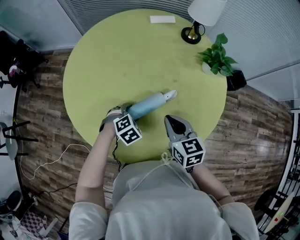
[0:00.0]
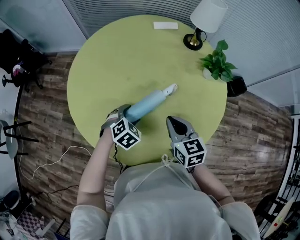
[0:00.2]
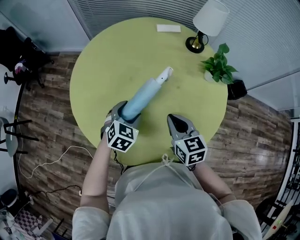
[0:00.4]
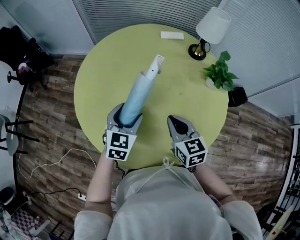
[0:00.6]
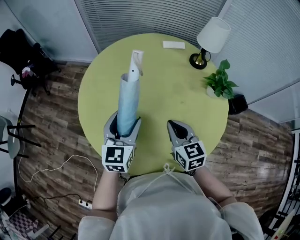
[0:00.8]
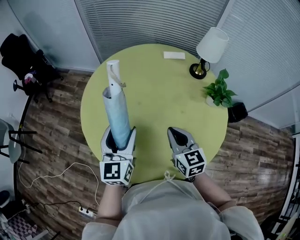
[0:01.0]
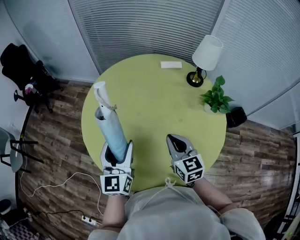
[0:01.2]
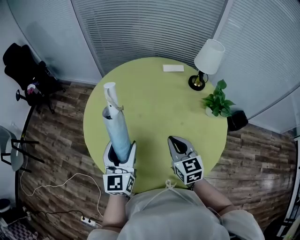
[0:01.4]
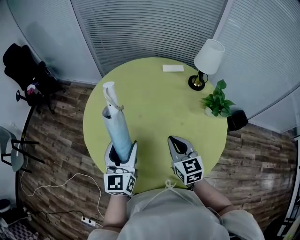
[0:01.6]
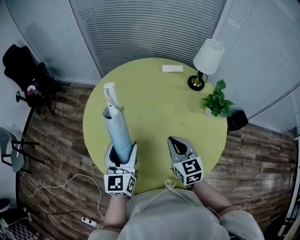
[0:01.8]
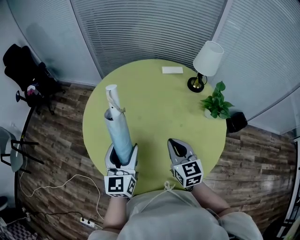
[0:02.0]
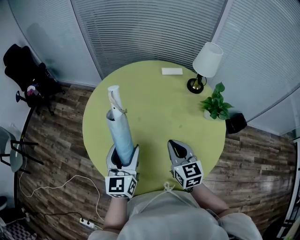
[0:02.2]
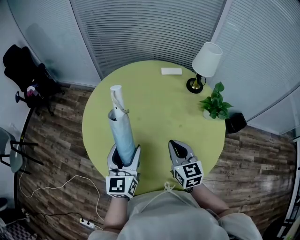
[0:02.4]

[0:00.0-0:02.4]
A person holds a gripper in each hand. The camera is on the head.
0:00.0 to 0:01.2: The right gripper heads upward, covering some 10 cm; the left gripper goes some 25 cm upward, and tips its fingers upward by approximately 70 degrees.
0:01.2 to 0:02.4: The grippers make only small movements.

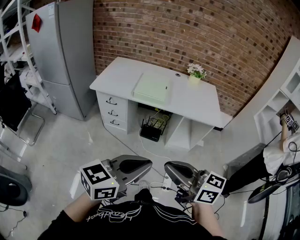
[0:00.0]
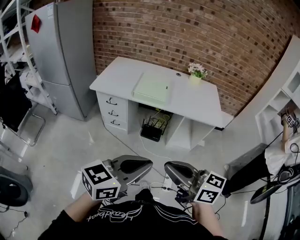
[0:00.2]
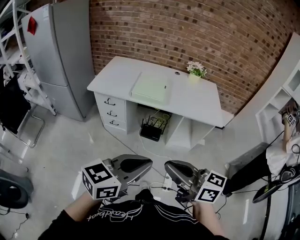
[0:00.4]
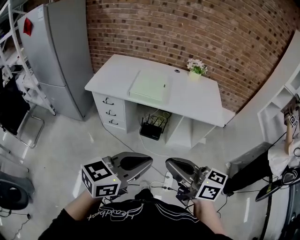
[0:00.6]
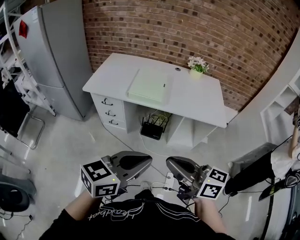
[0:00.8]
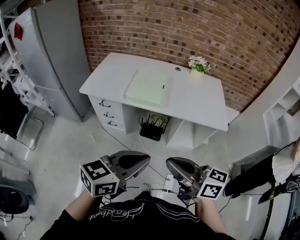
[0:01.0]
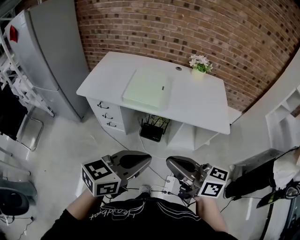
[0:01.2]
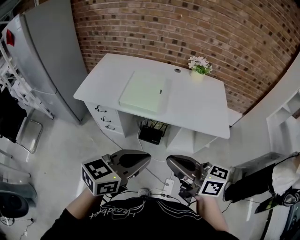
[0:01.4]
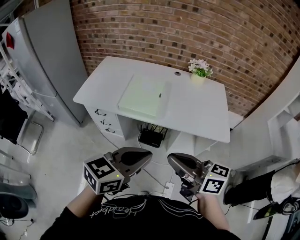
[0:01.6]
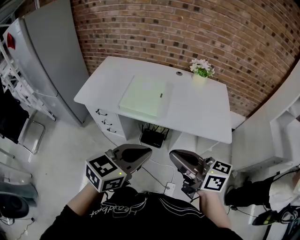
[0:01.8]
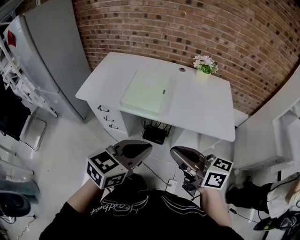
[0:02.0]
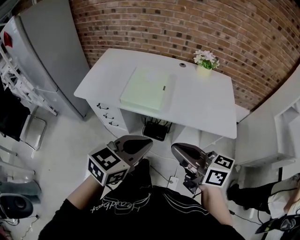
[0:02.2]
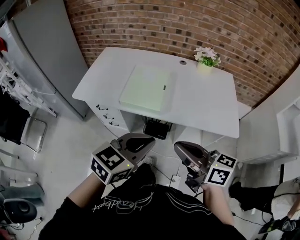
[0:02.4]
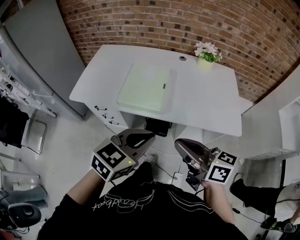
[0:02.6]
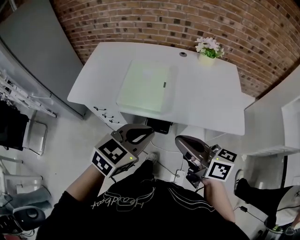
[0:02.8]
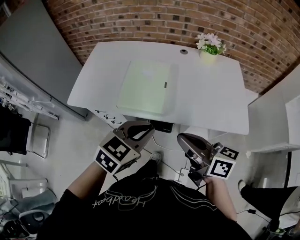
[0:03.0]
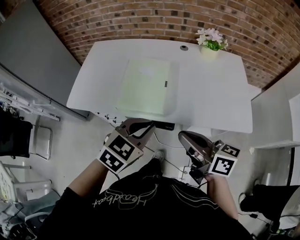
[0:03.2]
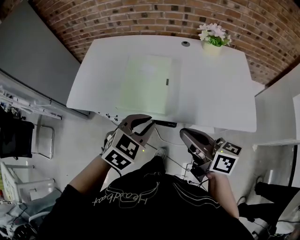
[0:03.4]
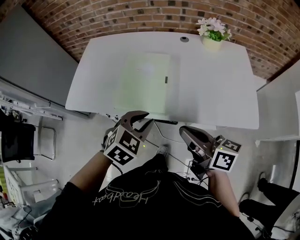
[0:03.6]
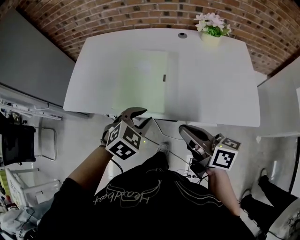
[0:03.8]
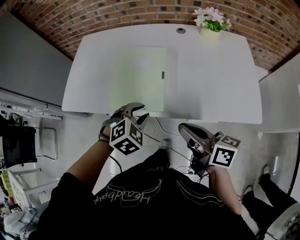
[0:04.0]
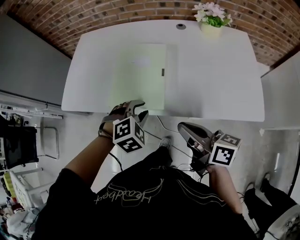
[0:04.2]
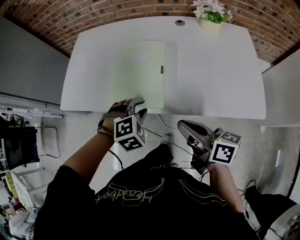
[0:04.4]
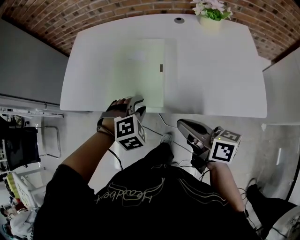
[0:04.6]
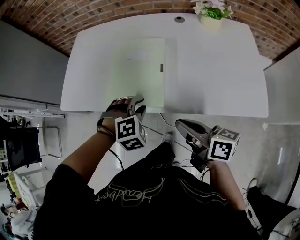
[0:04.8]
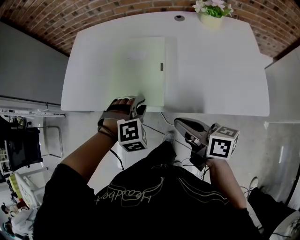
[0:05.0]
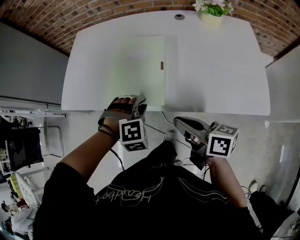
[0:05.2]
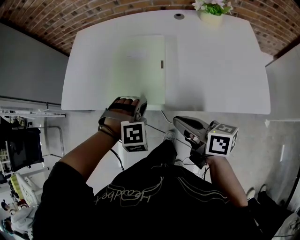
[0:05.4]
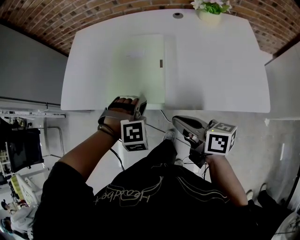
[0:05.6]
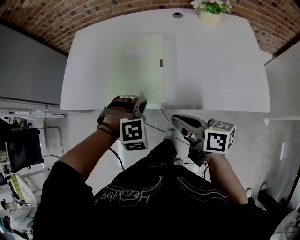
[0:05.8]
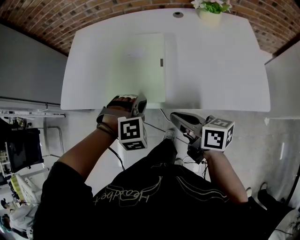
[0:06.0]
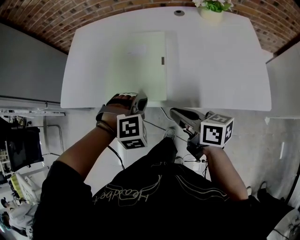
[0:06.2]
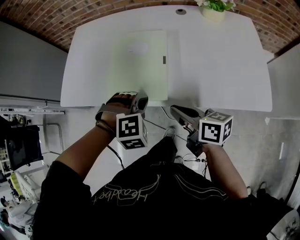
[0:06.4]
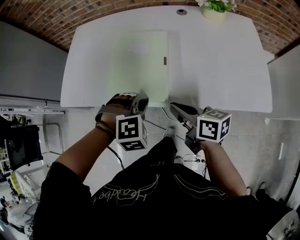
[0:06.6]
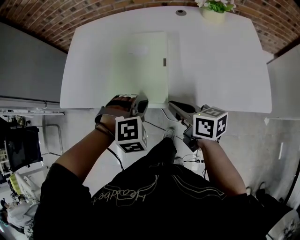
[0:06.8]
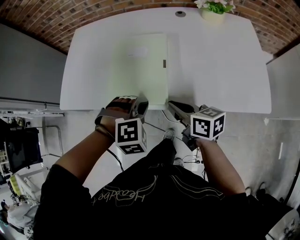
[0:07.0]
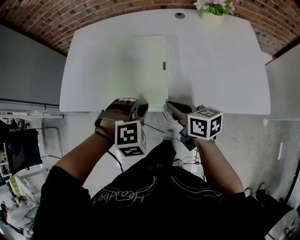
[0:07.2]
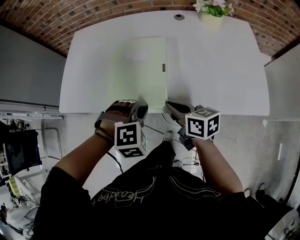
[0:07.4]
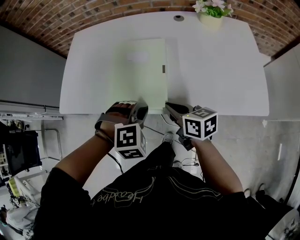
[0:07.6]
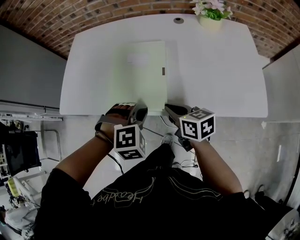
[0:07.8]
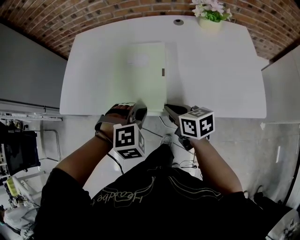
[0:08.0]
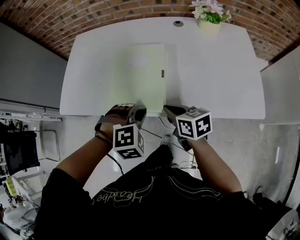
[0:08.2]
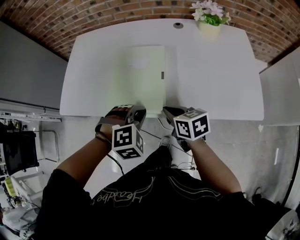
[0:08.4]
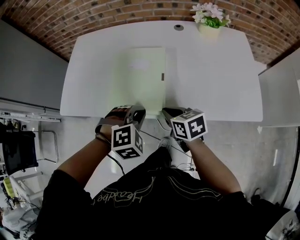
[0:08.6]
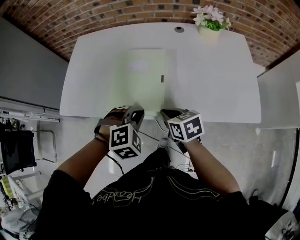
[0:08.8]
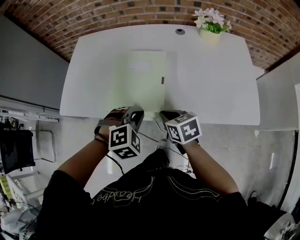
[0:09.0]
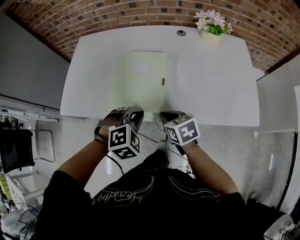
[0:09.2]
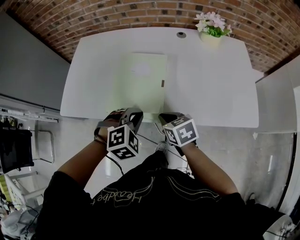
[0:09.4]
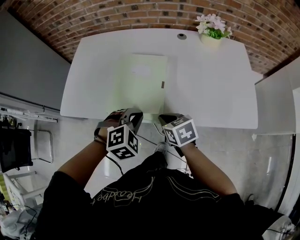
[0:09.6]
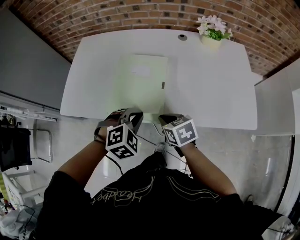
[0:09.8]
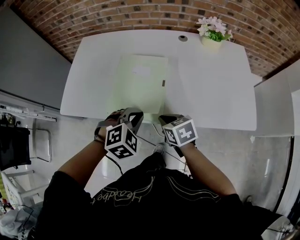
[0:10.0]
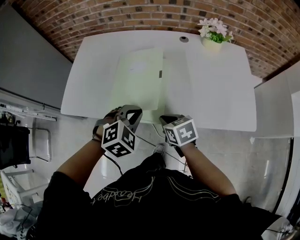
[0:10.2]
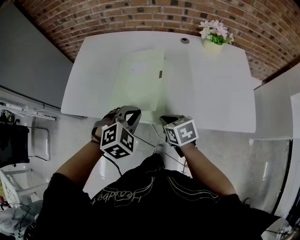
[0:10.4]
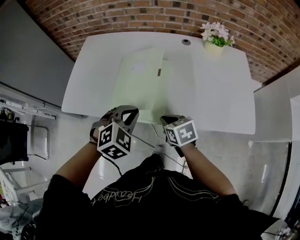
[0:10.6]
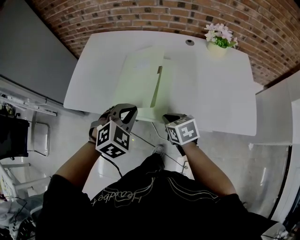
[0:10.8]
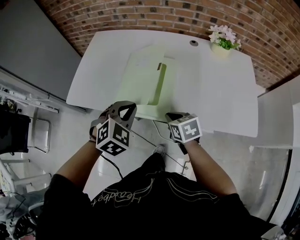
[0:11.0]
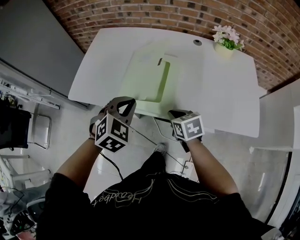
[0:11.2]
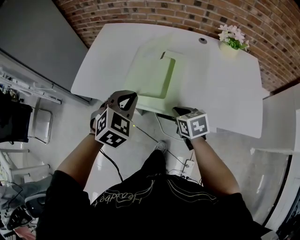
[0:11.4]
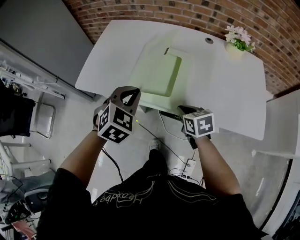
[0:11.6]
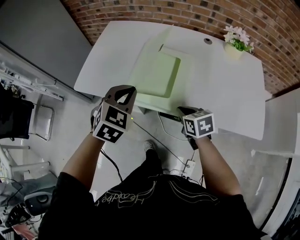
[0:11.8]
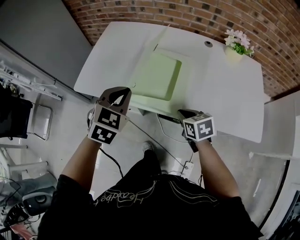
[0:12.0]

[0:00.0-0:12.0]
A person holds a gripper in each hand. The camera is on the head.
0:00.0 to 0:01.6: Both grippers travel together forward, approximately 25 cm.
0:01.6 to 0:03.0: Both grippers move forward and downward, roughly 15 cm. The left gripper changes its angle by about 20 degrees.
0:03.0 to 0:04.4: The left gripper is displaced downward and forward by about 20 cm, swivels about 50 degrees, and opens. The right gripper goes some 10 cm downward and forward.
0:04.4 to 0:06.0: The right gripper changes place by some 5 cm.
0:06.0 to 0:07.6: The right gripper heads forward, covering roughly 5 cm.
0:07.6 to 0:09.0: The right gripper rotates roughly 20 degrees.
0:09.0 to 0:10.4: The grippers make only small movements.
0:10.4 to 0:12.0: The left gripper is displaced to the left and upward by roughly 15 cm, and changes its angle by roughly 30 degrees.

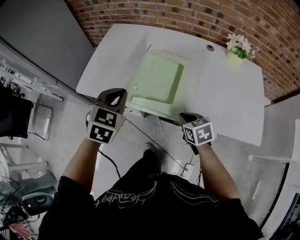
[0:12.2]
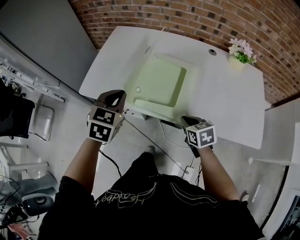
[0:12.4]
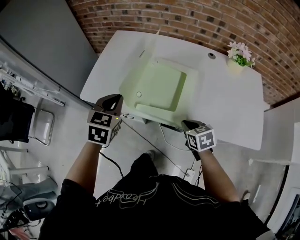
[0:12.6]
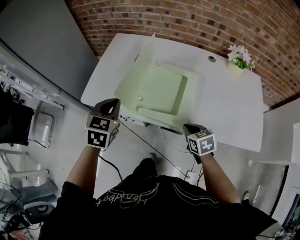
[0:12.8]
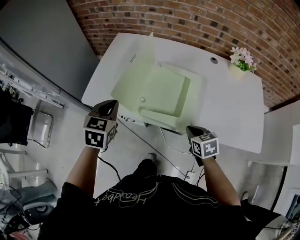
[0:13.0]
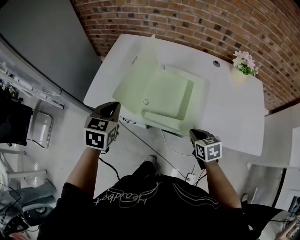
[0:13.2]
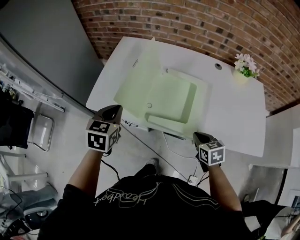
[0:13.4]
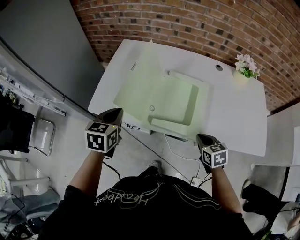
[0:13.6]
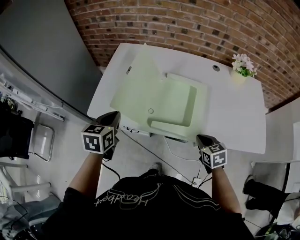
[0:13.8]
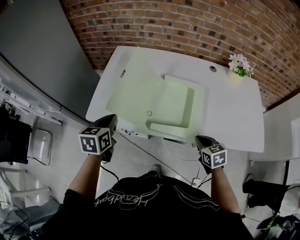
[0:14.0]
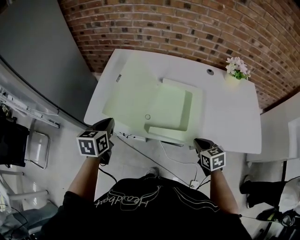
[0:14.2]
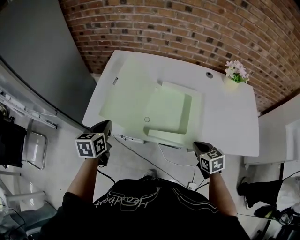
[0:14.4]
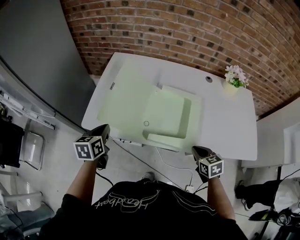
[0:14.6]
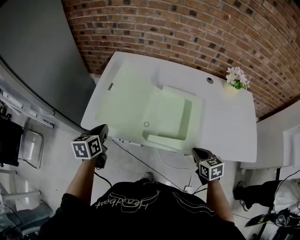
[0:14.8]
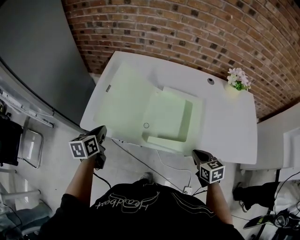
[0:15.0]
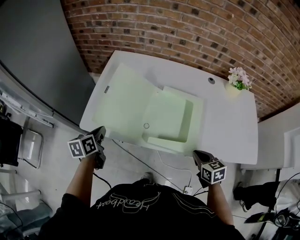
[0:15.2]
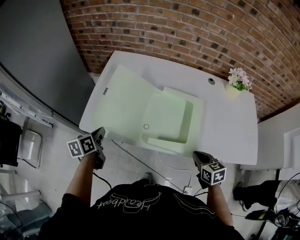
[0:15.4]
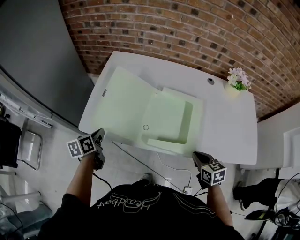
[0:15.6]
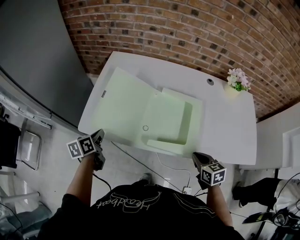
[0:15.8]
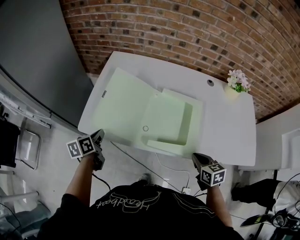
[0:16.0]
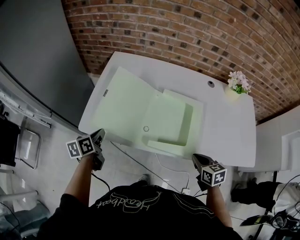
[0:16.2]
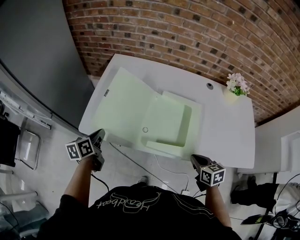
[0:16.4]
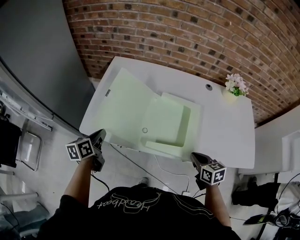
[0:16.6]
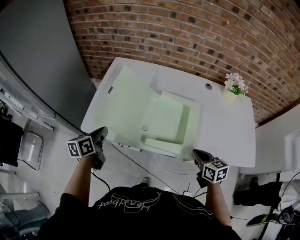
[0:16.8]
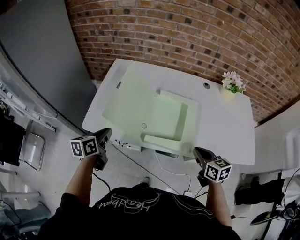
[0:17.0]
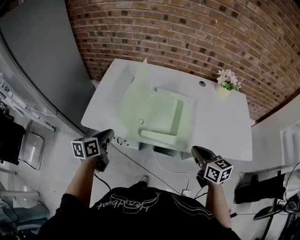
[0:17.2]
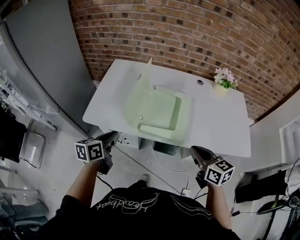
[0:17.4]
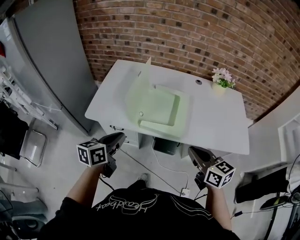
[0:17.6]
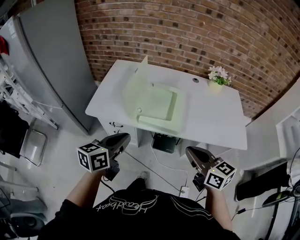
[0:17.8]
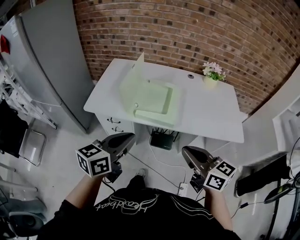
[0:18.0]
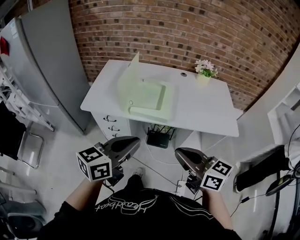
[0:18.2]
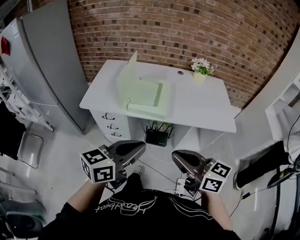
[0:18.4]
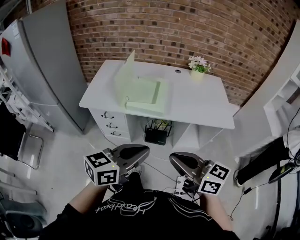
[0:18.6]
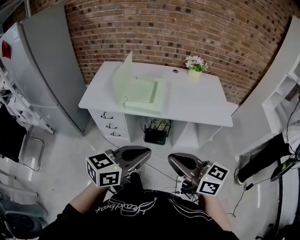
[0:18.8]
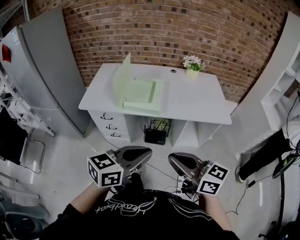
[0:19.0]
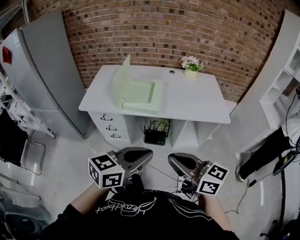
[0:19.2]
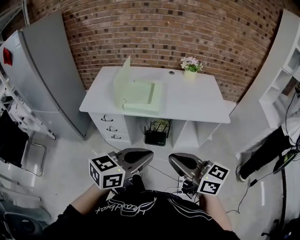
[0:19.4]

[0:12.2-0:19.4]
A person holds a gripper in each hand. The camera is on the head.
0:12.2 to 0:13.6: The left gripper moves to the left and forward, roughly 15 cm, and turns by some 20 degrees.
0:13.6 to 0:15.0: The left gripper shifts approximately 10 cm to the left and downward, and turns by approximately 20 degrees.
0:15.0 to 0:16.6: The grippers move only a little.
0:16.6 to 0:18.0: The left gripper is displaced backward, to the right and upward by approximately 40 cm, and turns by approximately 40 degrees, while the right gripper is displaced backward and upward by roughly 30 cm, and points its fingers roughly 30 degrees further upward.
0:18.0 to 0:19.4: The left gripper travels backward and to the right by about 25 cm, and changes its angle by some 20 degrees. Meanwhile the right gripper is displaced backward by approximately 15 cm.

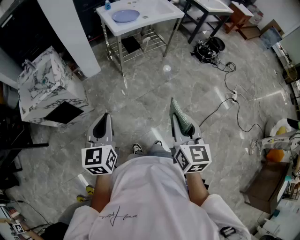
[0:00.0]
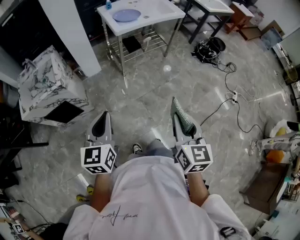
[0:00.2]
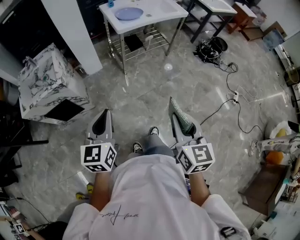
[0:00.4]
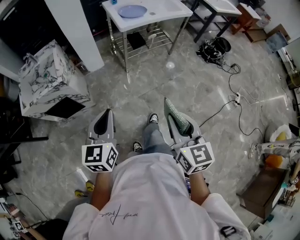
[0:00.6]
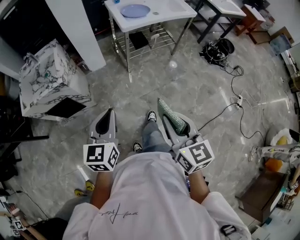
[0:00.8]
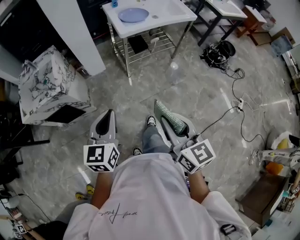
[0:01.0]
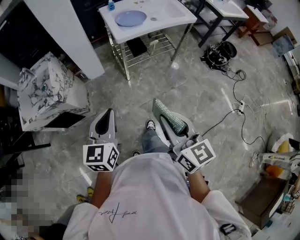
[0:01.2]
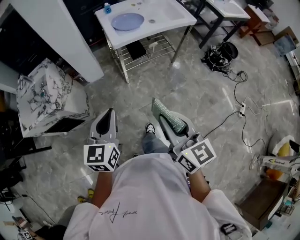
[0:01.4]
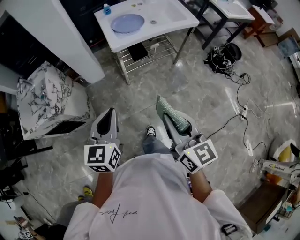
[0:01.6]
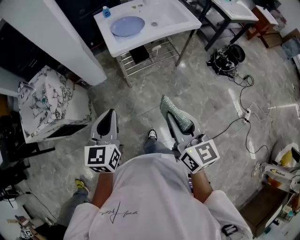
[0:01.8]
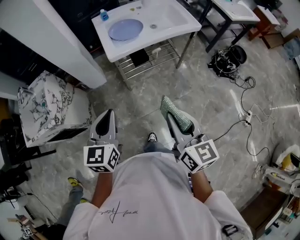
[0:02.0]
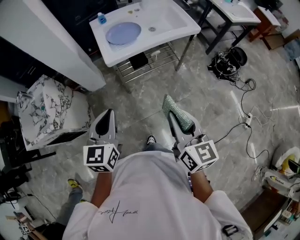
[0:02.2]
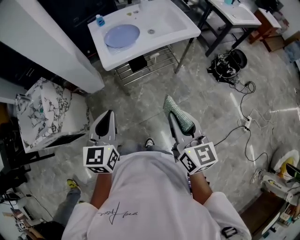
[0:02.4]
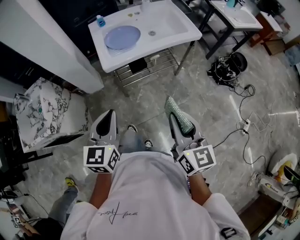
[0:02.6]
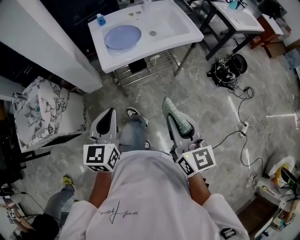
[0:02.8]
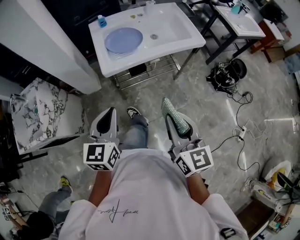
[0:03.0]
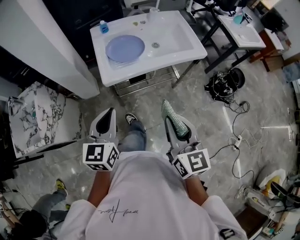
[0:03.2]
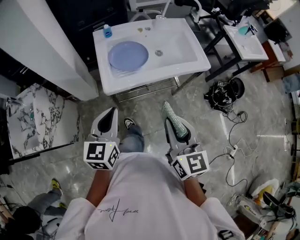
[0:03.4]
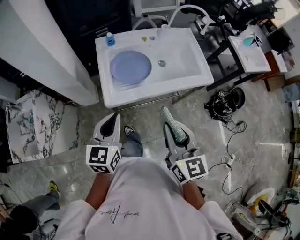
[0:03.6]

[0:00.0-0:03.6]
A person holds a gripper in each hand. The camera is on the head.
0:00.0 to 0:01.8: The left gripper heads forward and to the right, covering about 30 cm; the right gripper heads forward, covering some 30 cm, and swivels some 20 degrees.
0:01.8 to 0:03.6: The grippers both shift forward by about 35 cm.
